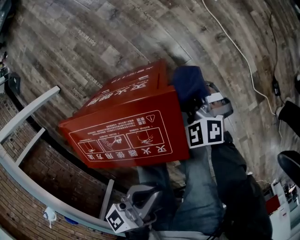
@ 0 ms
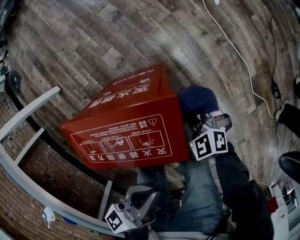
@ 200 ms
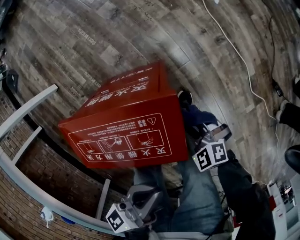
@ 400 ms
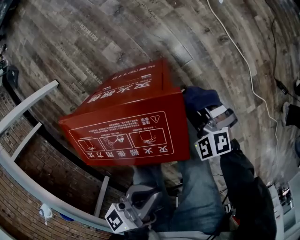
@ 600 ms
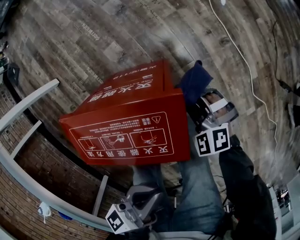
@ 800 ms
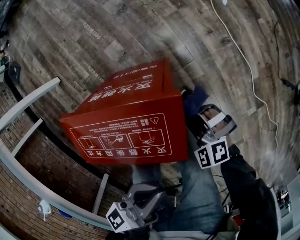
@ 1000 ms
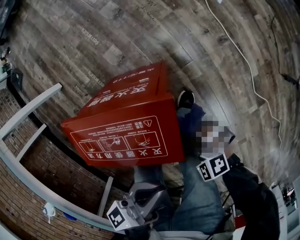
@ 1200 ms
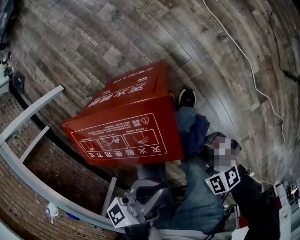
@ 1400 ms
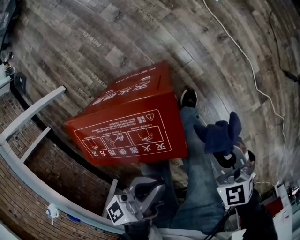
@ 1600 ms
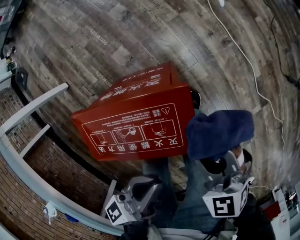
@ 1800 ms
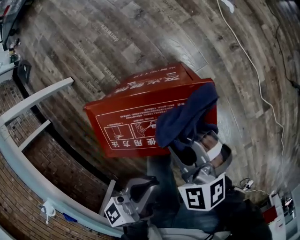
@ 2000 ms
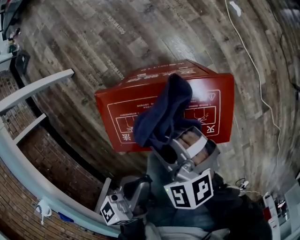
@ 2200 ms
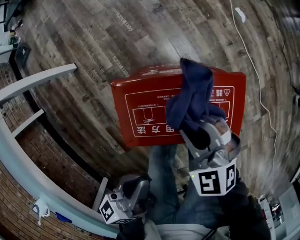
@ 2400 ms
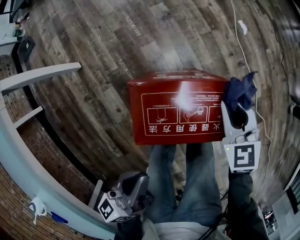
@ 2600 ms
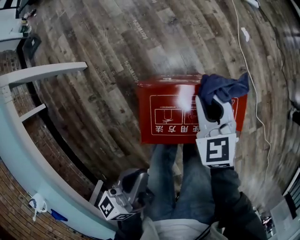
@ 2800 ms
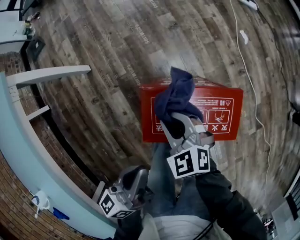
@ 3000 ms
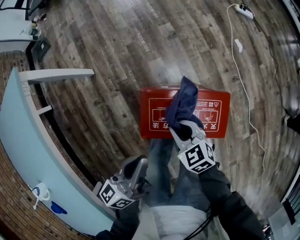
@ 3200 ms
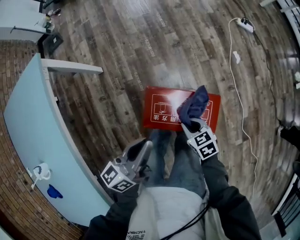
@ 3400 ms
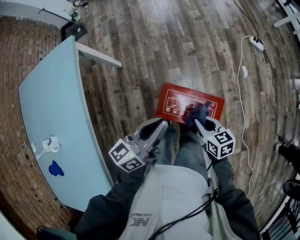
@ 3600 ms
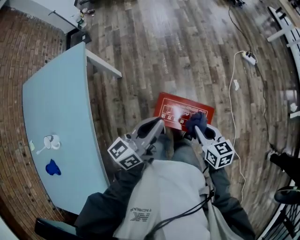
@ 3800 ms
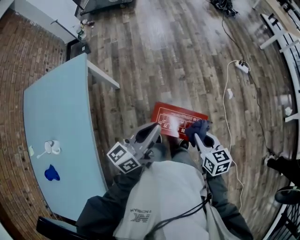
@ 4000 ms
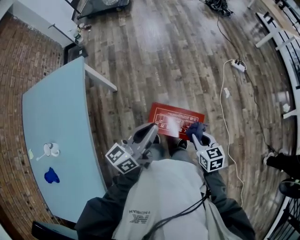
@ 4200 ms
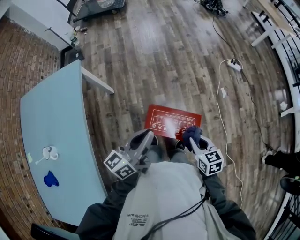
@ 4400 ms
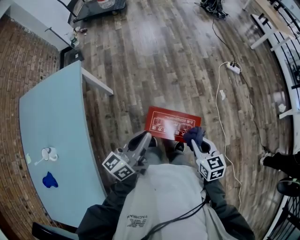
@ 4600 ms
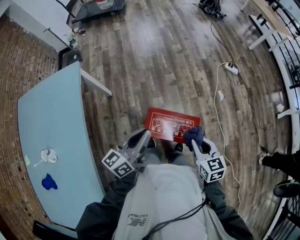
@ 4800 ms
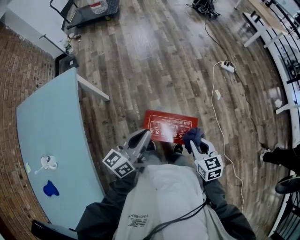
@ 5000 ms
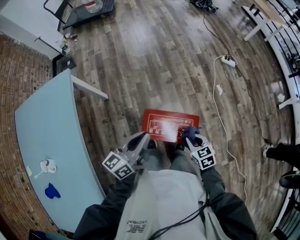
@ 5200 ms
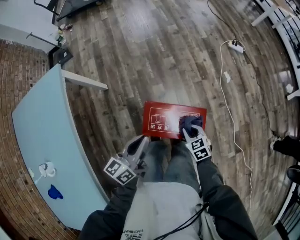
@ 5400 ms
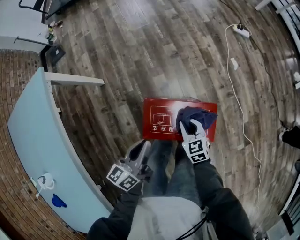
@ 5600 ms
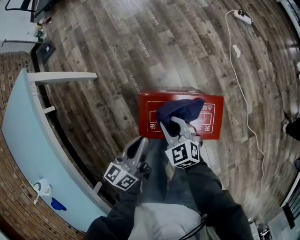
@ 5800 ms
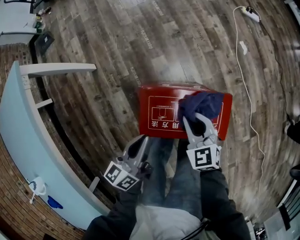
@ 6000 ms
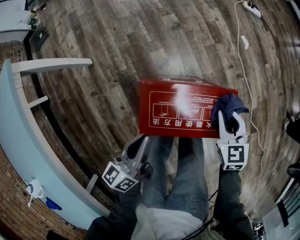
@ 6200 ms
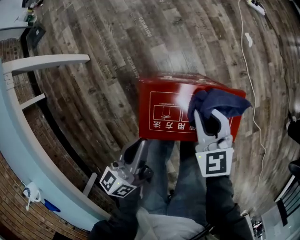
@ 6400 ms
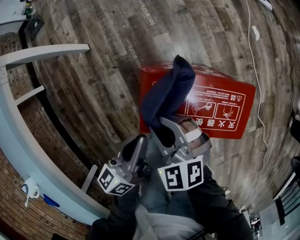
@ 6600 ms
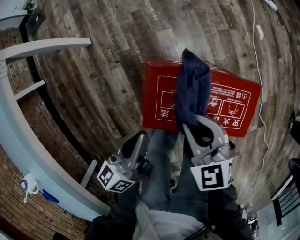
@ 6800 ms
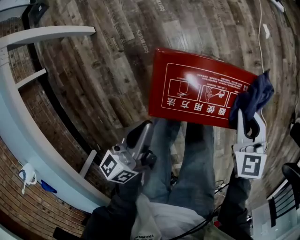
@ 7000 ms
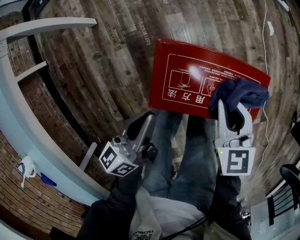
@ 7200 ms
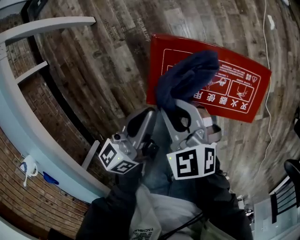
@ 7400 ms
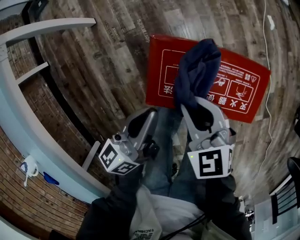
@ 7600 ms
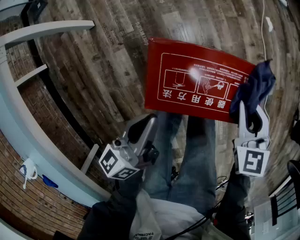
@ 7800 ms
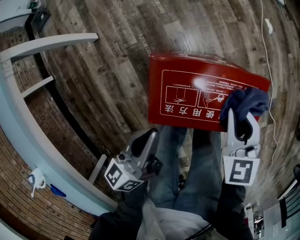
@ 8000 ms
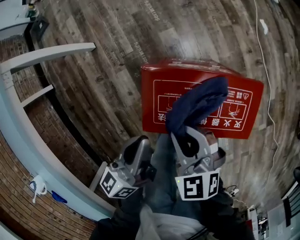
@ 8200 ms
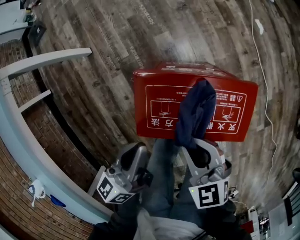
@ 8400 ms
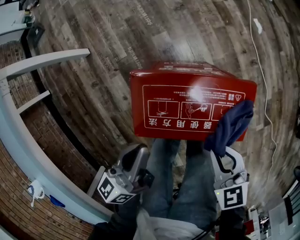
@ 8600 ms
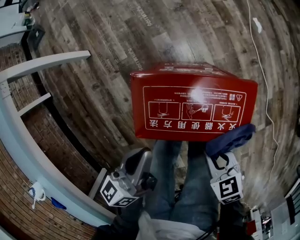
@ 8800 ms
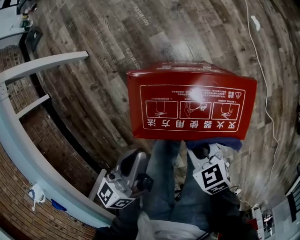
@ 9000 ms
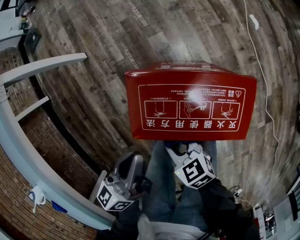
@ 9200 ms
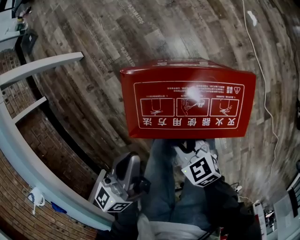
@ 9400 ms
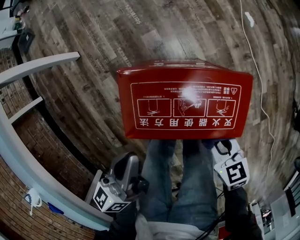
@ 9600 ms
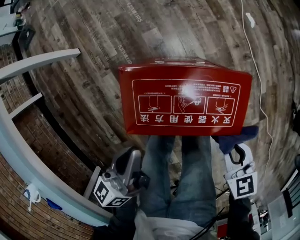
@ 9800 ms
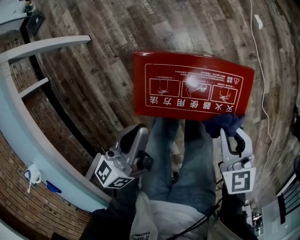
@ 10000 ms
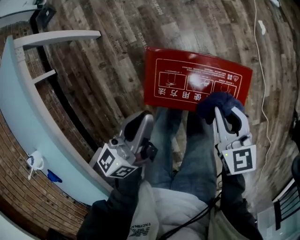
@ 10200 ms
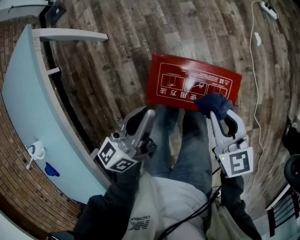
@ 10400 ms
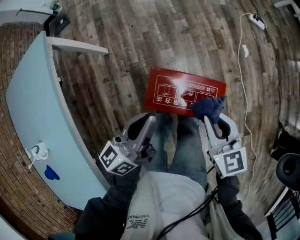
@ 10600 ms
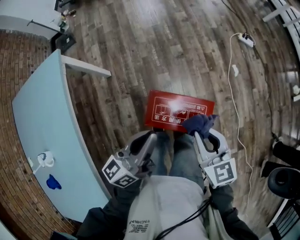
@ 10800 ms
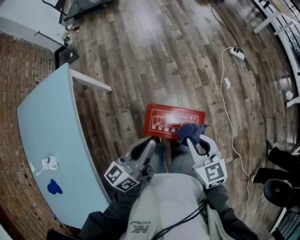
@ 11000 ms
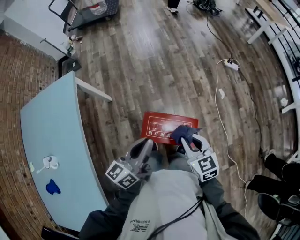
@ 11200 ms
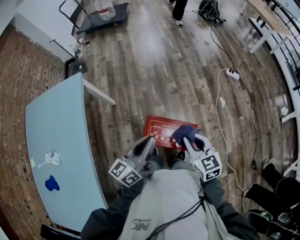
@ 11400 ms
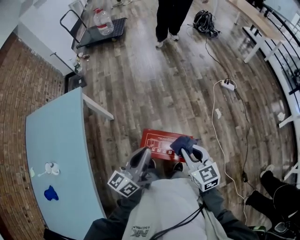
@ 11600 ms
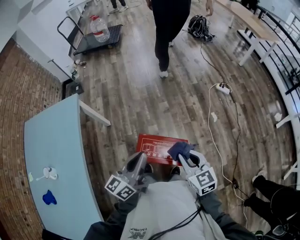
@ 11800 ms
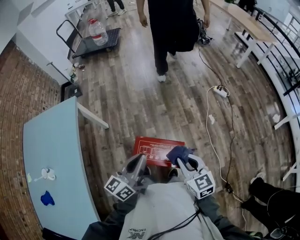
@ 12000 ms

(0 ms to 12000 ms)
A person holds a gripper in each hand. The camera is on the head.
0 ms - 1600 ms: The right gripper goes forward and backward, approximately 20 cm each way, reversing 3 times, and turns by roughly 20 degrees.
1600 ms - 3000 ms: The right gripper moves left and right over about 35 cm, changing direction 2 times. The left gripper goes some 30 cm to the left.
3000 ms - 4400 ms: The left gripper shifts roughly 25 cm upward. The right gripper goes about 30 cm upward, to the right and backward, and changes its angle by some 30 degrees.
4400 ms - 6000 ms: Both grippers move downward, approximately 25 cm. The right gripper turns by approximately 20 degrees.
6000 ms - 7600 ms: The right gripper goes left and right, roughly 25 cm each way, reversing 4 times.
7600 ms - 9000 ms: The right gripper shifts by about 15 cm, and turns by approximately 30 degrees.
9000 ms - 10400 ms: The left gripper goes roughly 10 cm upward, while the right gripper goes left and right, approximately 20 cm each way, reversing 2 times, and rotates about 30 degrees.
10400 ms - 12000 ms: The left gripper travels upward and to the right by some 25 cm. Meanwhile the right gripper moves upward, roughly 20 cm.

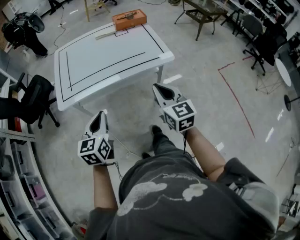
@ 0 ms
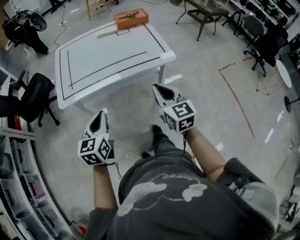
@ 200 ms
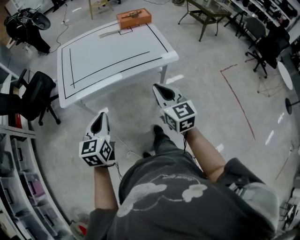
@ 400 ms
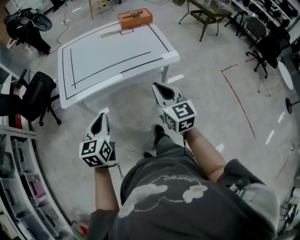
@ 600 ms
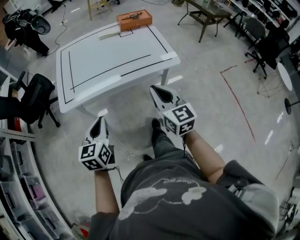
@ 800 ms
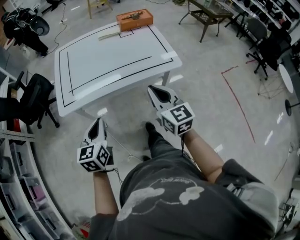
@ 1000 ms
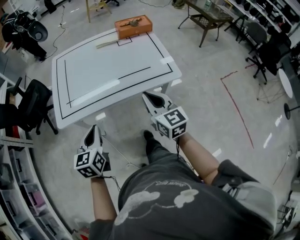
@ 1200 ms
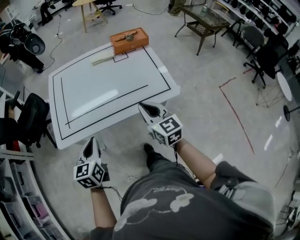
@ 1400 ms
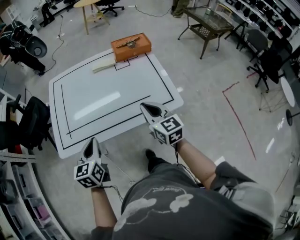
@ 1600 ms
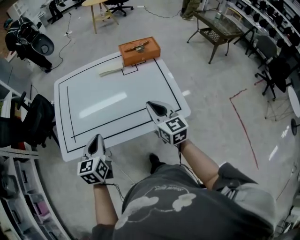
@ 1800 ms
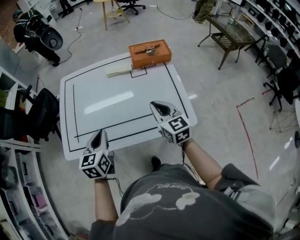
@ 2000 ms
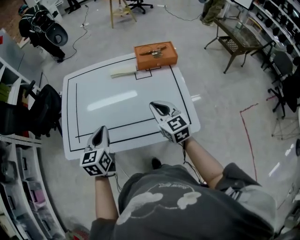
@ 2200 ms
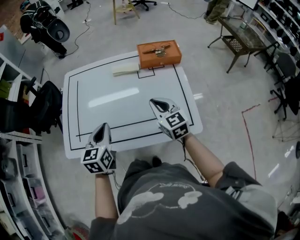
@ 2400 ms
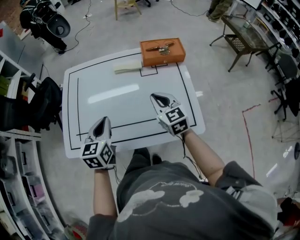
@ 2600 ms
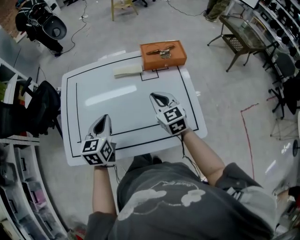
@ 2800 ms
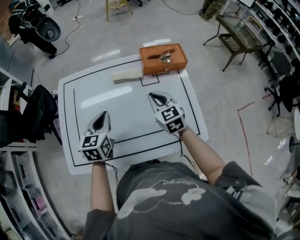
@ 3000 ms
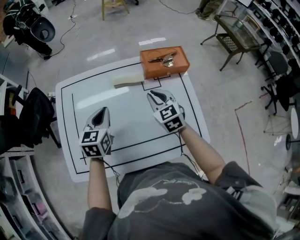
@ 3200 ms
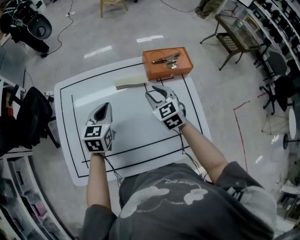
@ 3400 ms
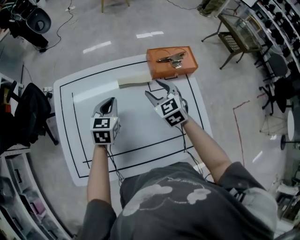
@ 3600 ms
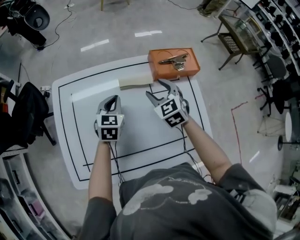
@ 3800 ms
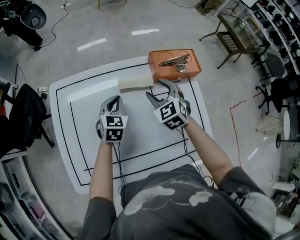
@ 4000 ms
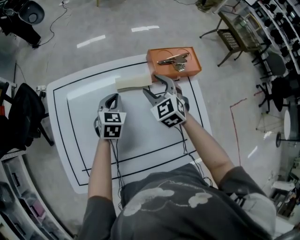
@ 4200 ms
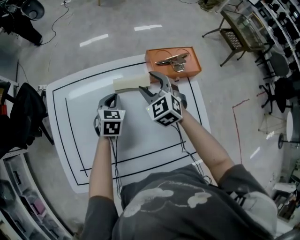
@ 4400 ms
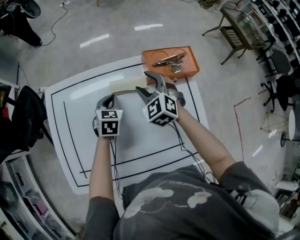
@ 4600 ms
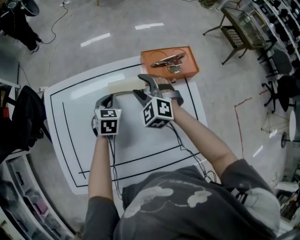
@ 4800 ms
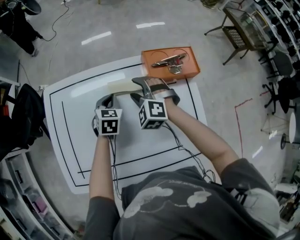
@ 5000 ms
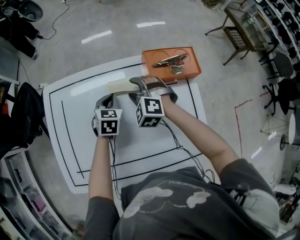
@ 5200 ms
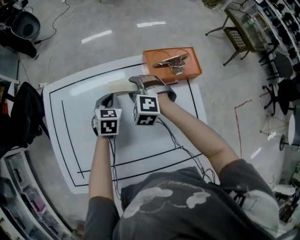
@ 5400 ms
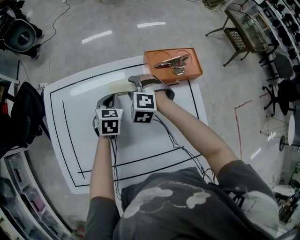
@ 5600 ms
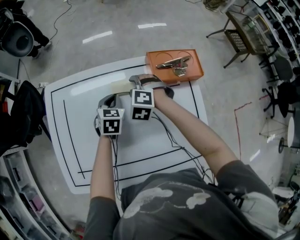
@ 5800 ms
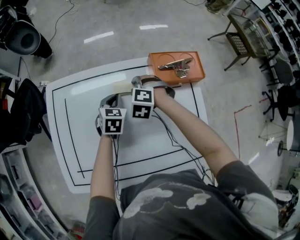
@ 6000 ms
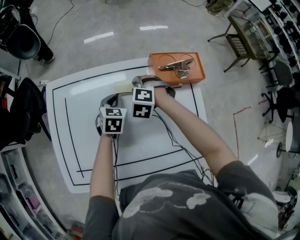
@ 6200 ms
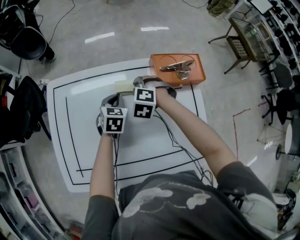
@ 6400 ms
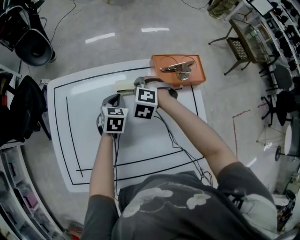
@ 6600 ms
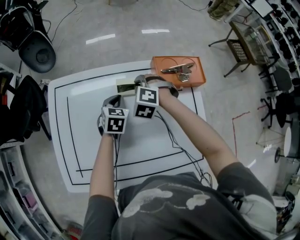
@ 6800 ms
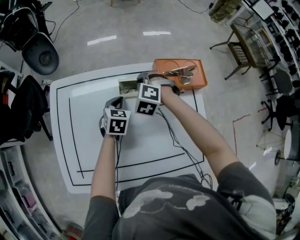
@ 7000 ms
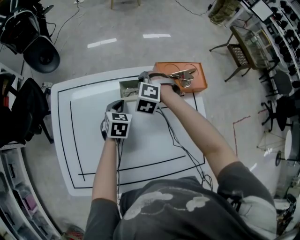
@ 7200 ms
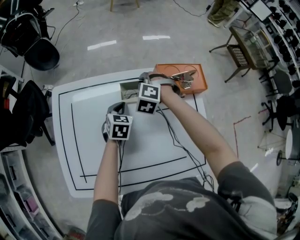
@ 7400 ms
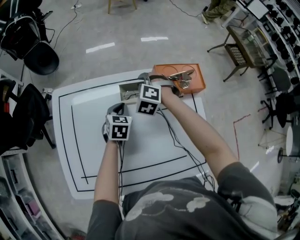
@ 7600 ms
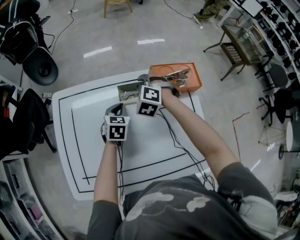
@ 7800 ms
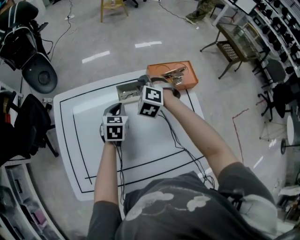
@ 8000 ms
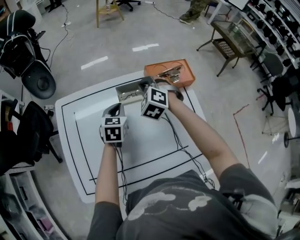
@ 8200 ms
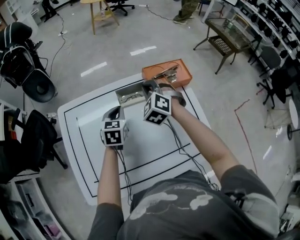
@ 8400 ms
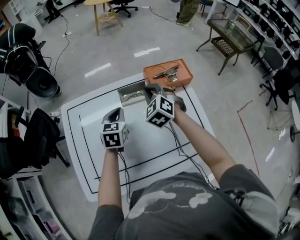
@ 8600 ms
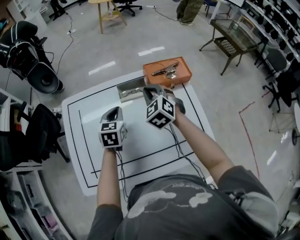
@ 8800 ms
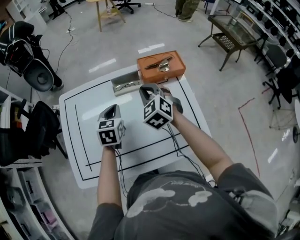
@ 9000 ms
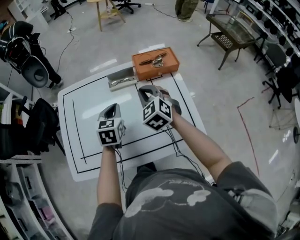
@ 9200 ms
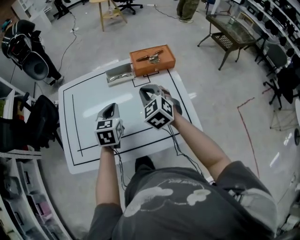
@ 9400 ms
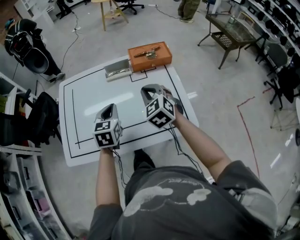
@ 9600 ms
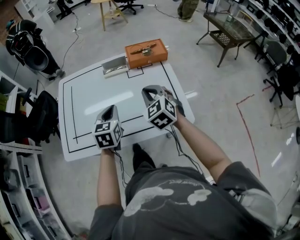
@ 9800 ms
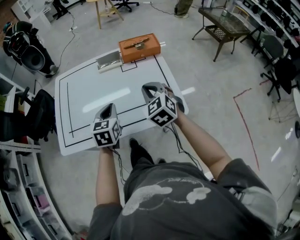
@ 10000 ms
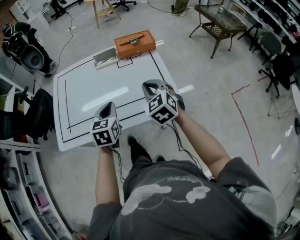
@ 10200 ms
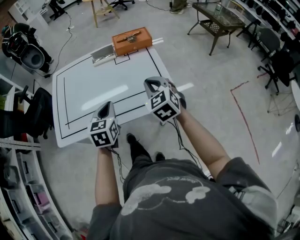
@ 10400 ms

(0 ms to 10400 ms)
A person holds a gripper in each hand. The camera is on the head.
0 ms - 1400 ms: The grippers both shift forward by roughly 15 cm.
1400 ms - 3000 ms: The two grippers go approximately 30 cm forward.
3000 ms - 4400 ms: The right gripper travels forward by some 15 cm, rotates about 20 degrees, and opens up, while the left gripper moves forward and downward, about 20 cm, and changes its angle by approximately 20 degrees.
4400 ms - 6000 ms: The right gripper shifts roughly 10 cm downward, and turns by some 40 degrees.
6000 ms - 7400 ms: The right gripper goes some 5 cm forward, and closes.
7400 ms - 9000 ms: The right gripper goes roughly 20 cm backward, upward and to the right, and turns by about 40 degrees. Meanwhile the left gripper is displaced upward and backward by some 15 cm.
9000 ms - 10400 ms: The left gripper goes approximately 25 cm backward, while the right gripper goes roughly 30 cm backward and to the right.

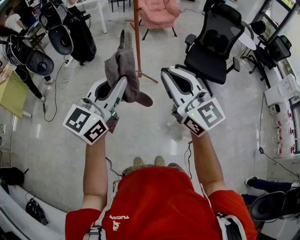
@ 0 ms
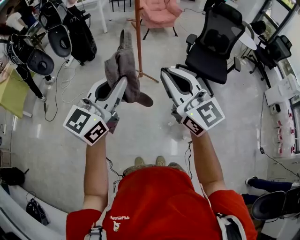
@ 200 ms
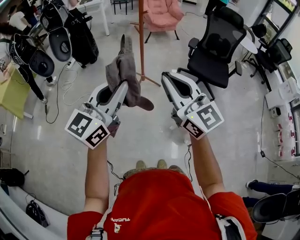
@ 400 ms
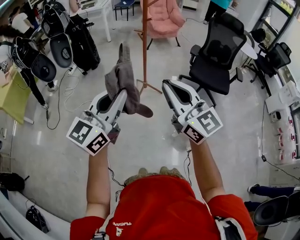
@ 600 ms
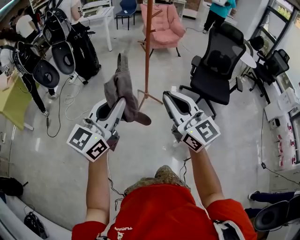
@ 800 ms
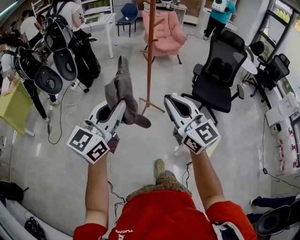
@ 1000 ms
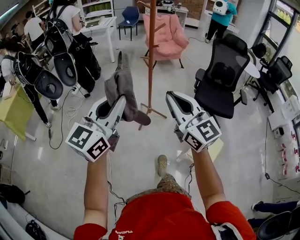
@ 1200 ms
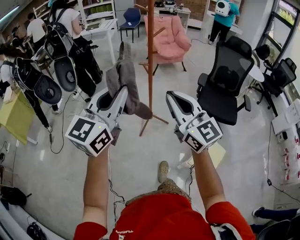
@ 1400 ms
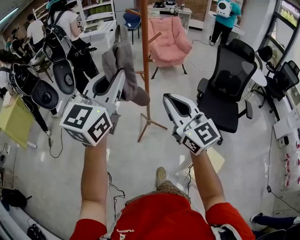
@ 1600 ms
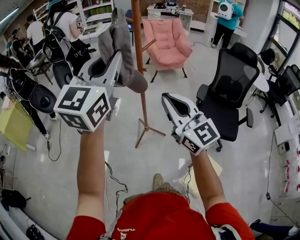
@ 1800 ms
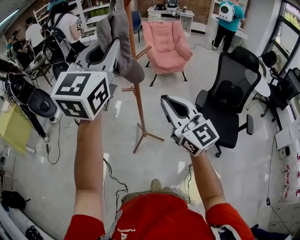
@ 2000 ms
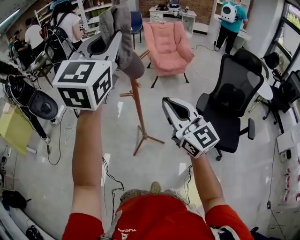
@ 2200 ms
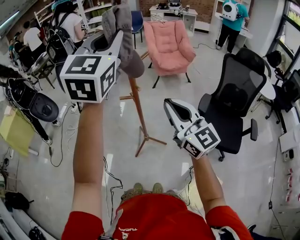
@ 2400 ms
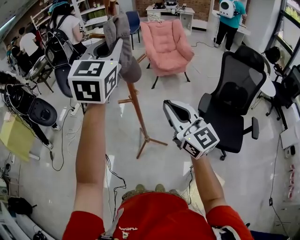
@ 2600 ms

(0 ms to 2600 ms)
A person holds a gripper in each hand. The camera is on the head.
0 ms - 1200 ms: Both grippers move forward and to the left, approximately 15 cm.
1200 ms - 2600 ms: Both grippers travel together forward and to the right, some 40 cm. The left gripper swivels approximately 30 degrees.
